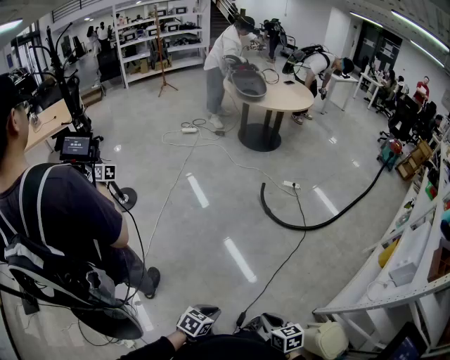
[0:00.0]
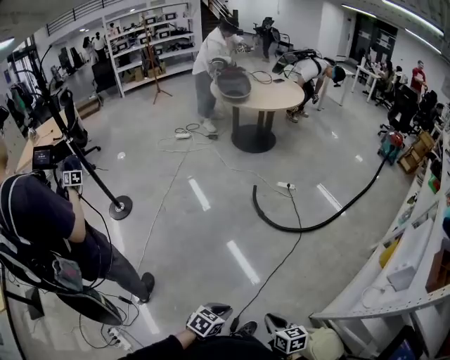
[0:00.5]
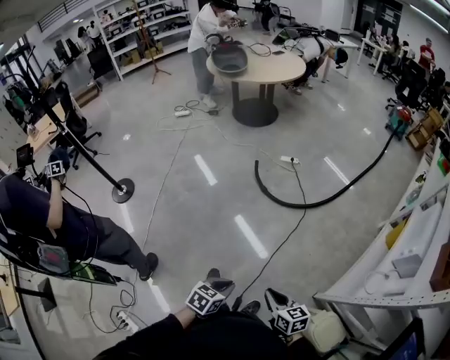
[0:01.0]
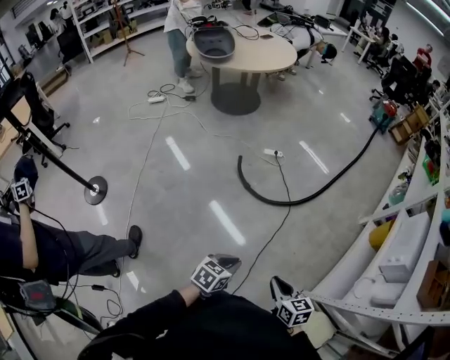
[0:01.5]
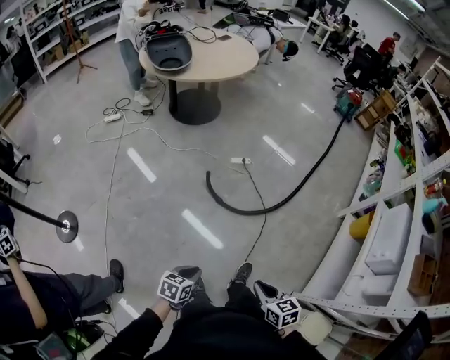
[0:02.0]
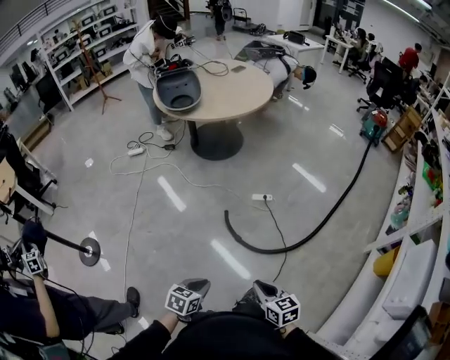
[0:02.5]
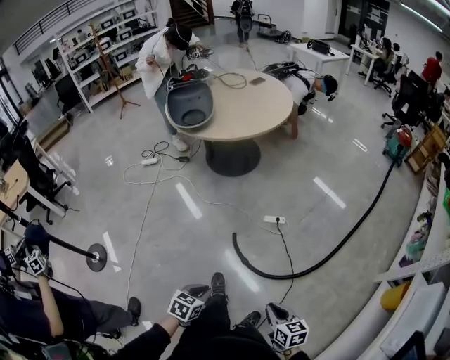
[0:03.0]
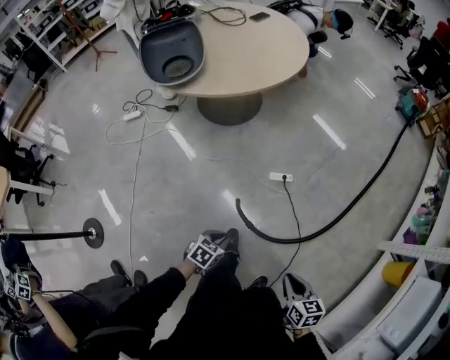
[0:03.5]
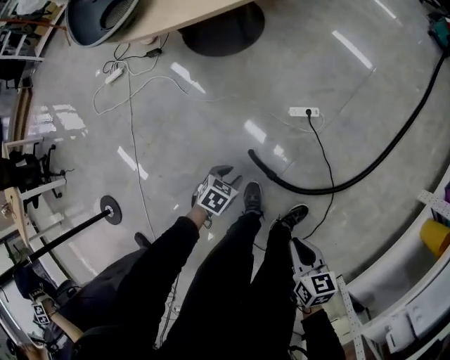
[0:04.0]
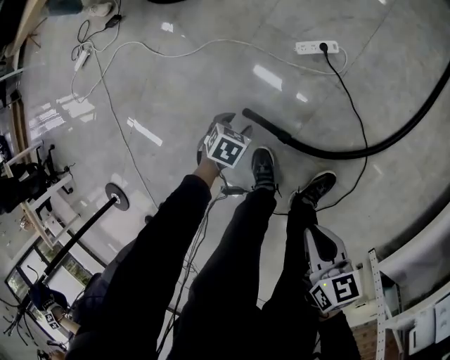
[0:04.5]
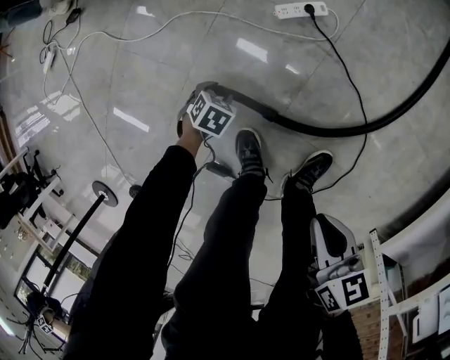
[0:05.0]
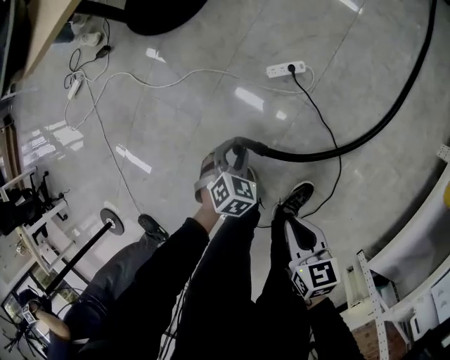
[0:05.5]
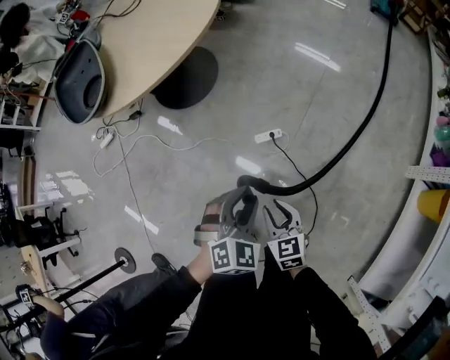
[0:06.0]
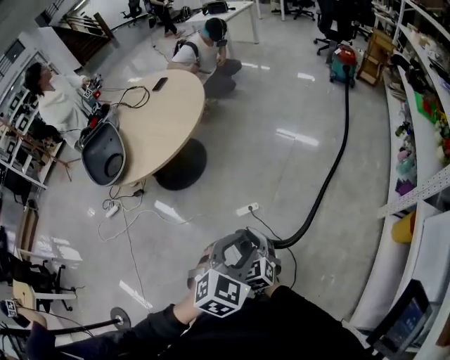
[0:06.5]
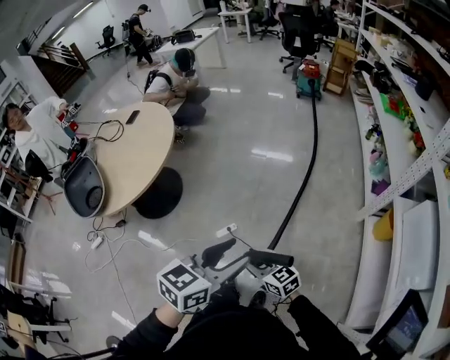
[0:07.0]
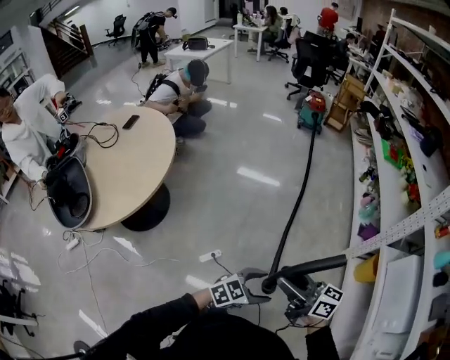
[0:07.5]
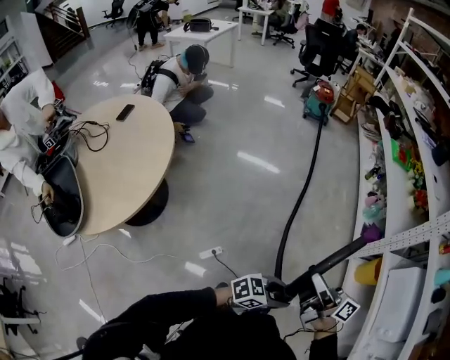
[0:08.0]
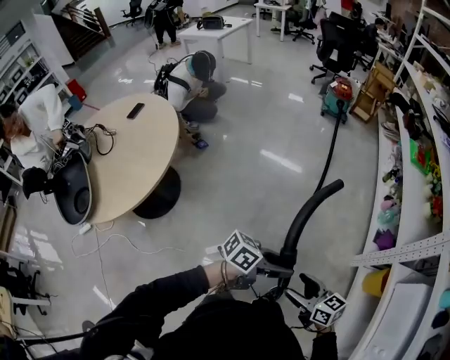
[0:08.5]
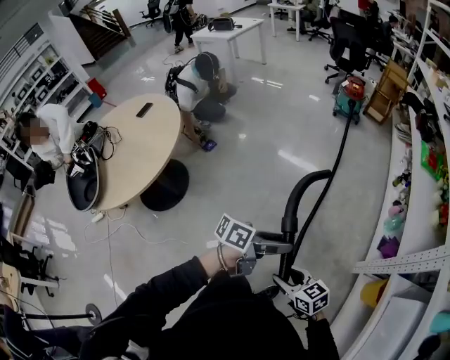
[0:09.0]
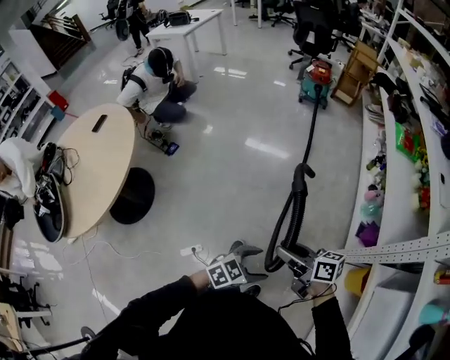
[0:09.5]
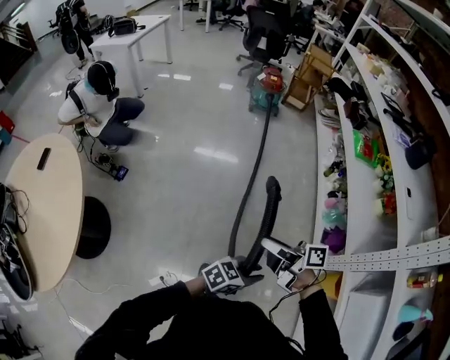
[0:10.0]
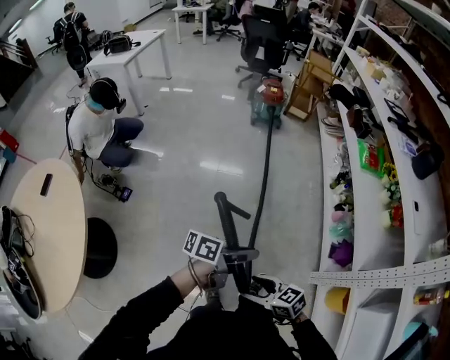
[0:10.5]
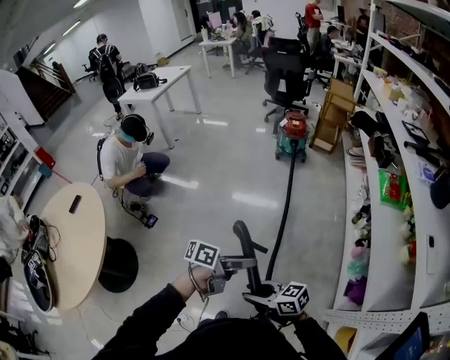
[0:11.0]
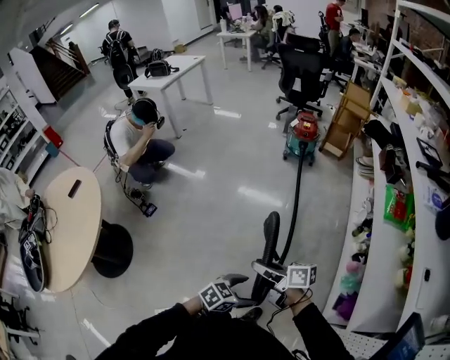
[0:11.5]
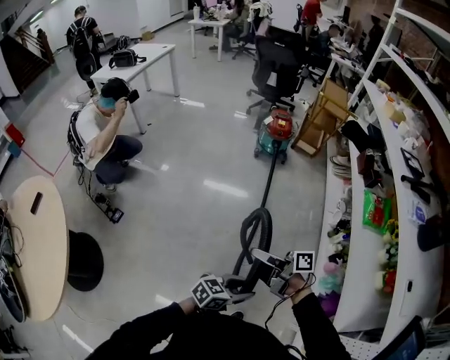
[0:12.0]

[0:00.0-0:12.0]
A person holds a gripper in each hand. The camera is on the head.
0:00.0 to 0:02.0: Both grippers are carried forward, about 40 cm.
0:02.0 to 0:04.0: Both grippers are carried forward, roughly 60 cm. The left gripper is displaced downward by about 30 cm, and turns by about 30 degrees.
0:04.0 to 0:06.0: The right gripper moves roughly 25 cm downward and comes back, and swivels roughly 30 degrees. The left gripper is displaced upward by some 30 cm, and twists approximately 40 degrees clockwise, seen from behind.
0:06.0 to 0:08.0: The right gripper goes roughly 35 cm upward, and tilts its fingers about 50 degrees upward. Meanwhile the left gripper ends up about 35 cm from where it was, tilts its fingers roughly 30 degrees upward, and opens and closes again.
0:08.0 to 0:10.0: Both grippers are carried about 40 cm. The left gripper opens, then closes once more. The right gripper rotates approximately 30 degrees.
0:10.0 to 0:12.0: The left gripper moves approximately 5 cm upward and comes back, and opens and closes again. The right gripper shifts by roughly 35 cm.

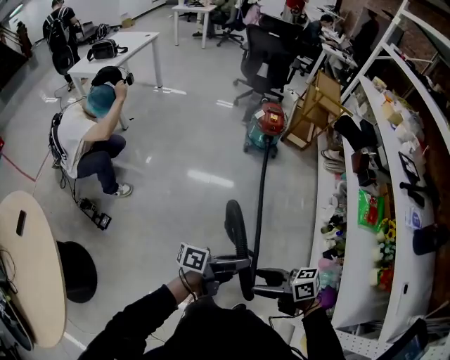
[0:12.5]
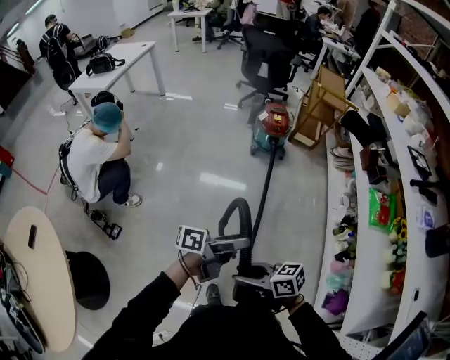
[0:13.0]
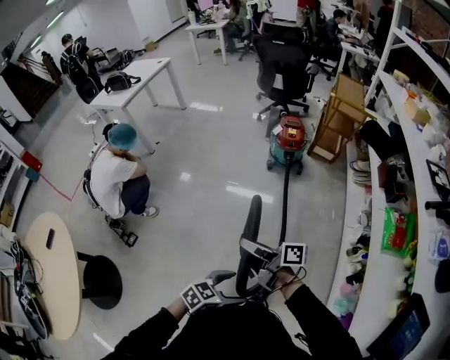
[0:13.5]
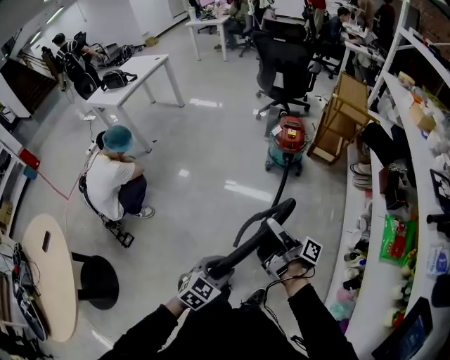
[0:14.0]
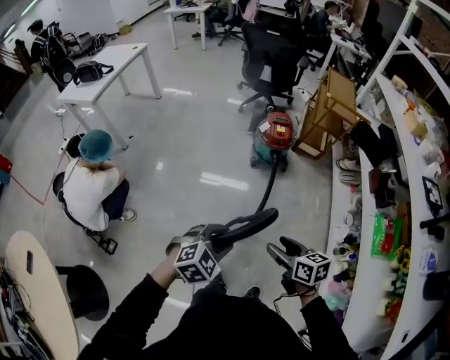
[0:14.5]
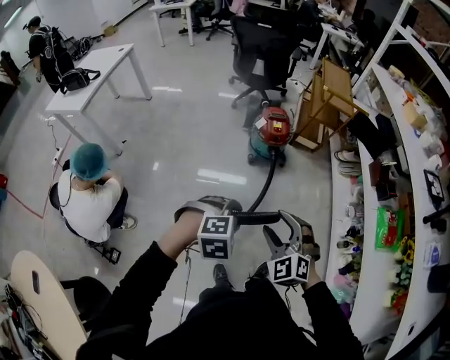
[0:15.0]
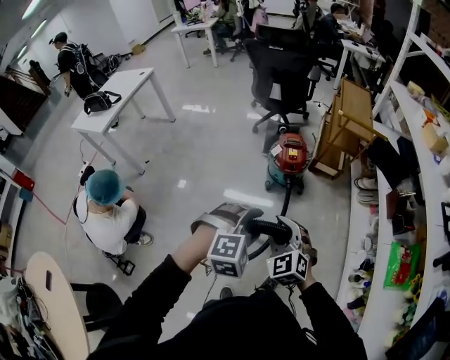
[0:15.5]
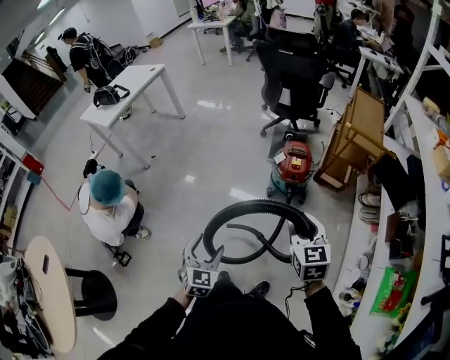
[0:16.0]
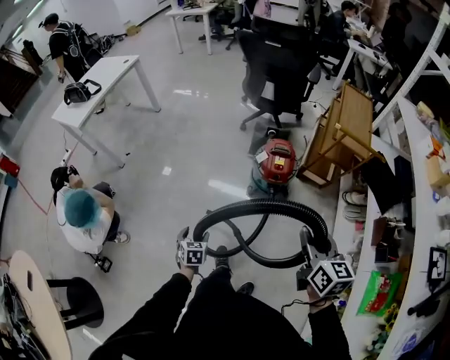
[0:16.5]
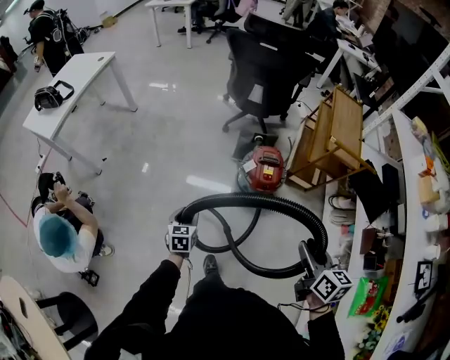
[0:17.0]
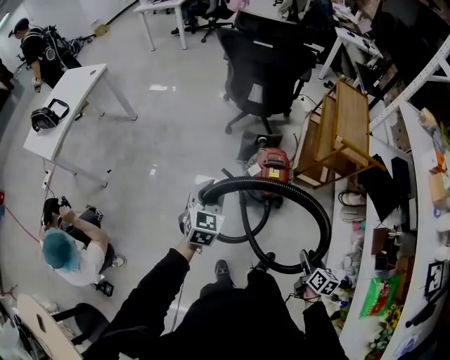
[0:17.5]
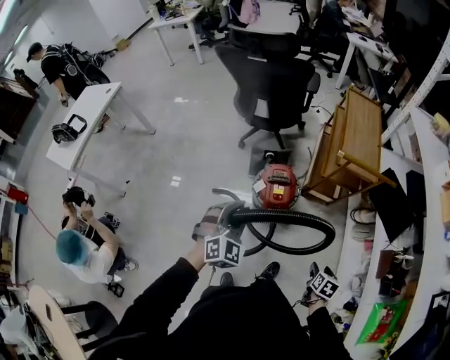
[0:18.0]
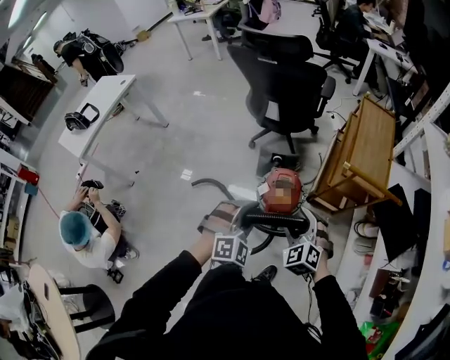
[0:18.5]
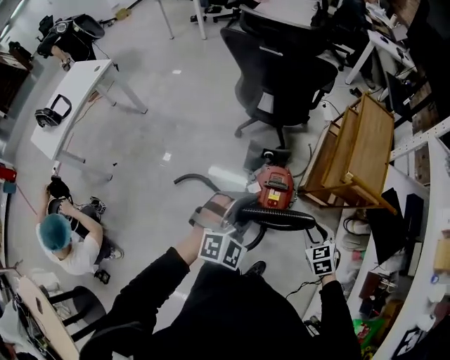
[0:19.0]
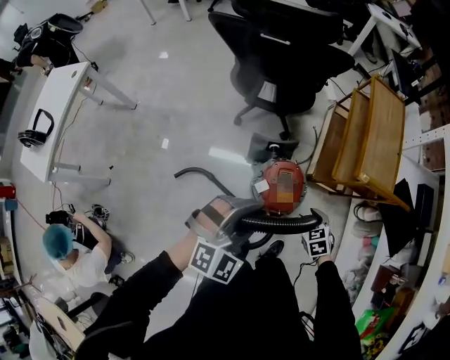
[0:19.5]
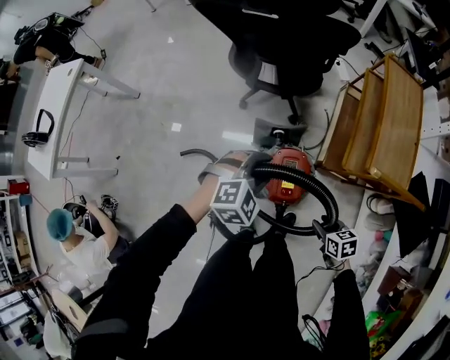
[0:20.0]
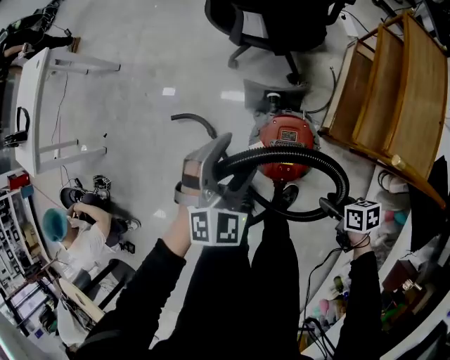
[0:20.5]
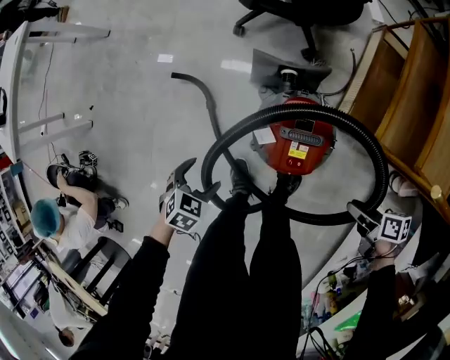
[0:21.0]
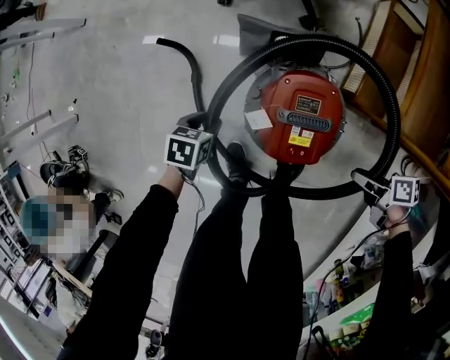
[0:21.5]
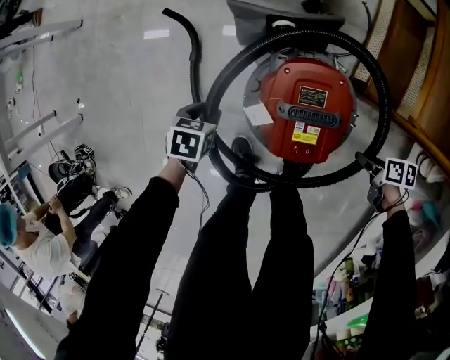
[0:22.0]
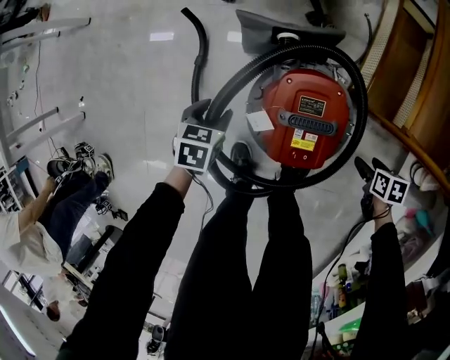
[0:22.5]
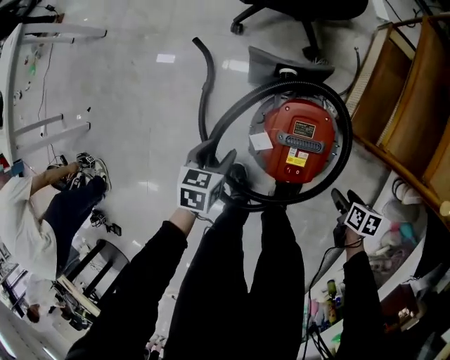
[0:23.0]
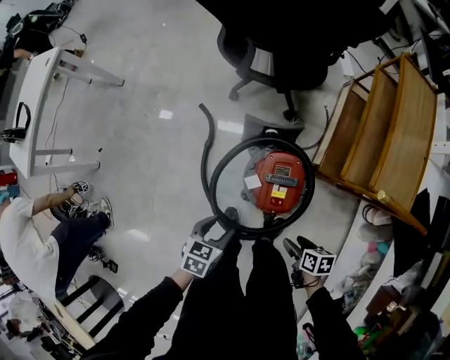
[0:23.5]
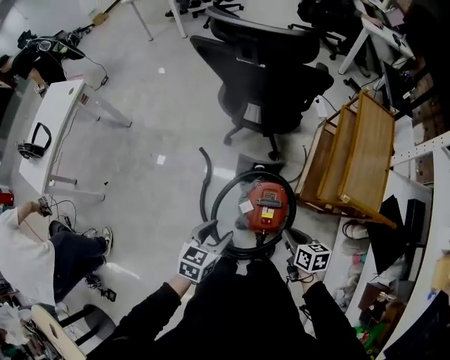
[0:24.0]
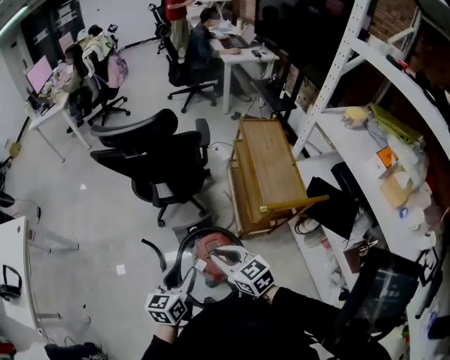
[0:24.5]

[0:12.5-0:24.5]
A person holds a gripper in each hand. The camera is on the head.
0:12.5 to 0:14.5: The right gripper changes place by approximately 40 cm, and rotates roughly 30 degrees, while the left gripper reaches some 10 cm downward, then returns, angles its fingers downward, by approximately 50 degrees, and opens and closes again.
0:14.5 to 0:16.5: The left gripper moves some 40 cm, twists approximately 50 degrees counterclockwise, seen from behind, and opens up; the right gripper moves approximately 40 cm, and swivels about 30 degrees.
0:16.5 to 0:18.5: The right gripper moves roughly 35 cm, rolls counterclockwise, seen from behind, by some 60 degrees, and opens. Meanwhile the left gripper shifts by some 50 cm, rolls clockwise, seen from behind, by roughly 70 degrees, and closes its fingers.
0:18.5 to 0:20.5: The right gripper heads downward, covering about 30 cm, twists approximately 80 degrees clockwise, seen from behind, and closes; the left gripper ends up about 35 cm from where it was, and opens.
0:20.5 to 0:22.5: The two grippers go roughly 35 cm downward. The right gripper changes its angle by about 20 degrees, and opens its fingers; the left gripper rolls counterclockwise, seen from behind, by roughly 50 degrees, and closes.
0:22.5 to 0:24.5: The two grippers go roughly 60 cm upward. The left gripper tilts its fingers roughly 40 degrees upward, while the right gripper points its fingers about 50 degrees further upward, and closes.

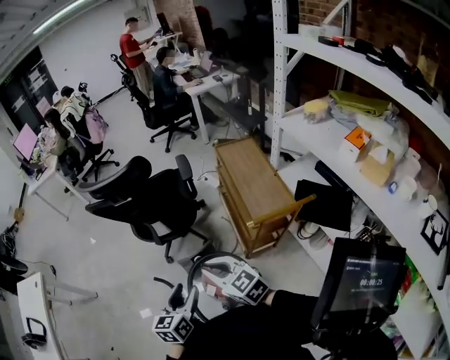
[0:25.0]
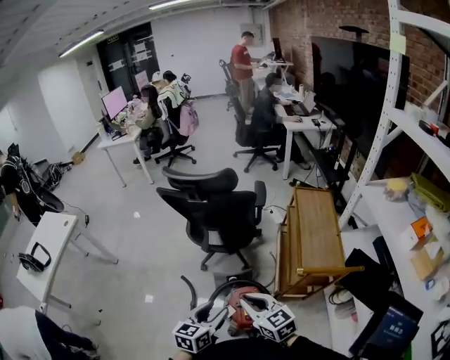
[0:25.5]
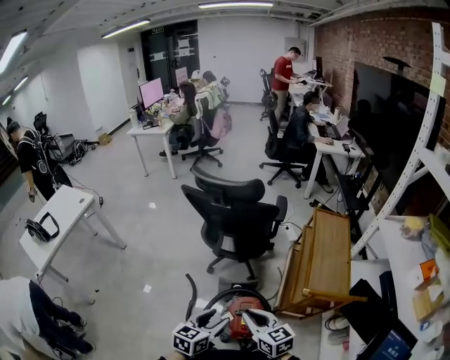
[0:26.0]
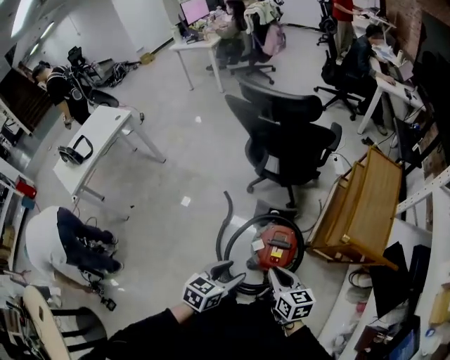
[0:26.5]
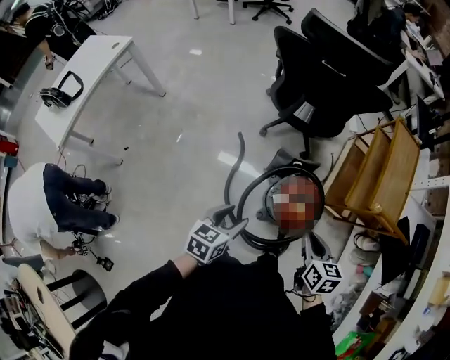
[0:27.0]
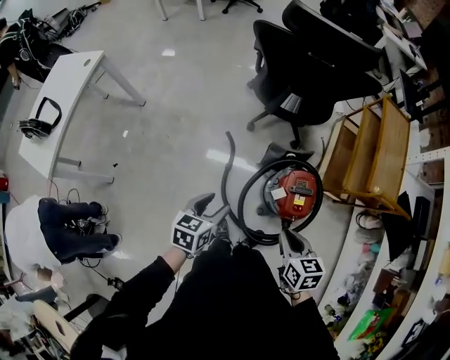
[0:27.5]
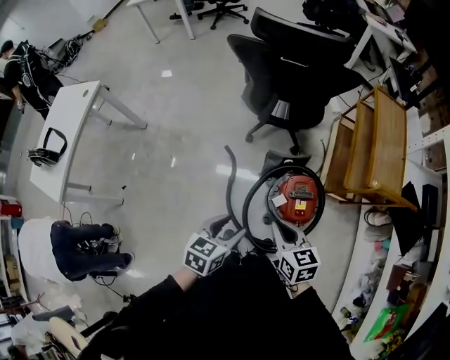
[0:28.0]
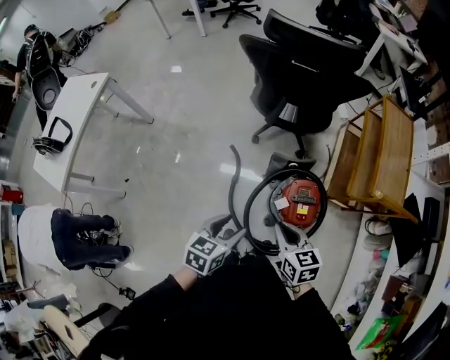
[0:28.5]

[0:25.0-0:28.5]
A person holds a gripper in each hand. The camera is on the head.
0:25.0 to 0:27.0: The left gripper goes roughly 30 cm to the left, downward and backward, and turns by some 20 degrees. Meanwhile the right gripper is displaced downward, backward and to the left by some 20 cm, and turns by approximately 30 degrees.
0:27.0 to 0:28.5: The left gripper travels to the left and back again, some 10 cm each way, while the right gripper heads to the left, covering about 10 cm.
